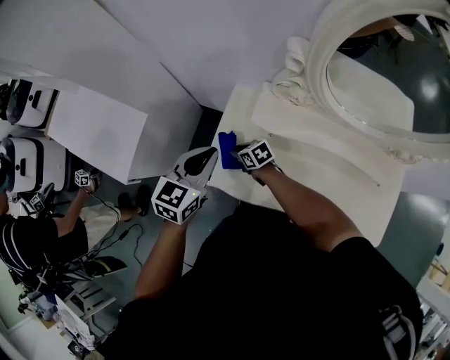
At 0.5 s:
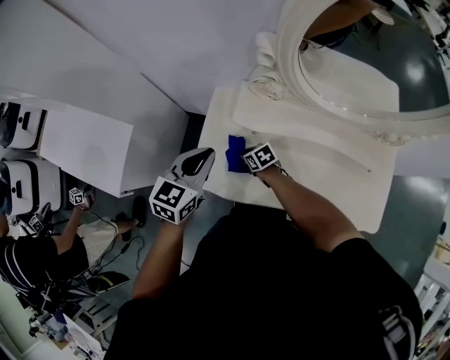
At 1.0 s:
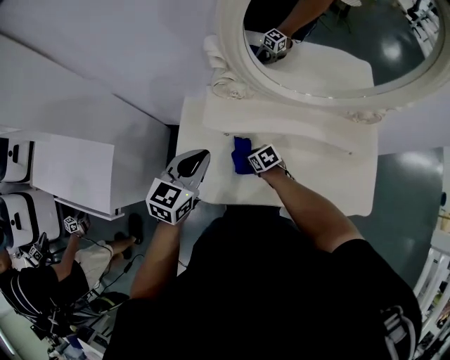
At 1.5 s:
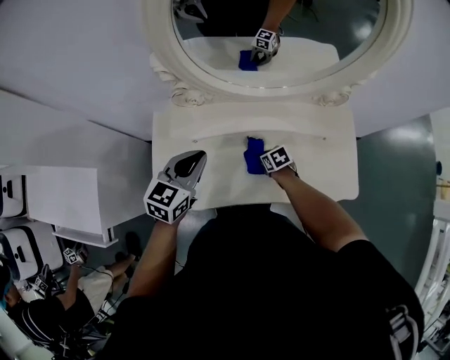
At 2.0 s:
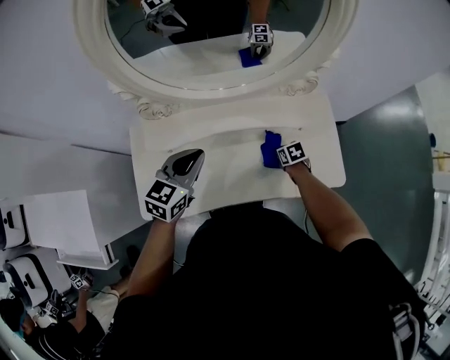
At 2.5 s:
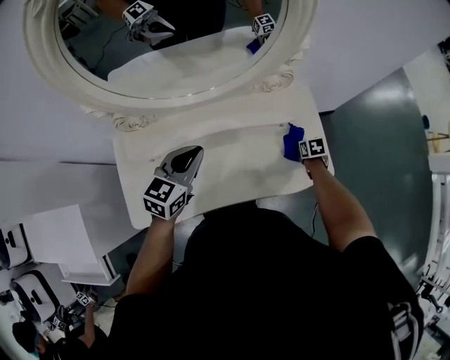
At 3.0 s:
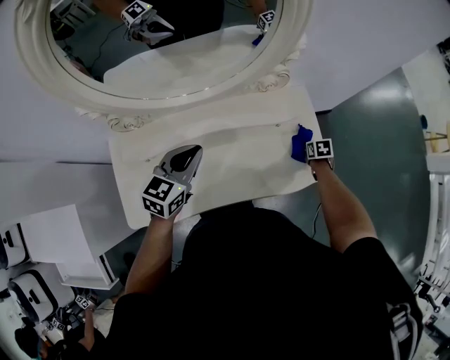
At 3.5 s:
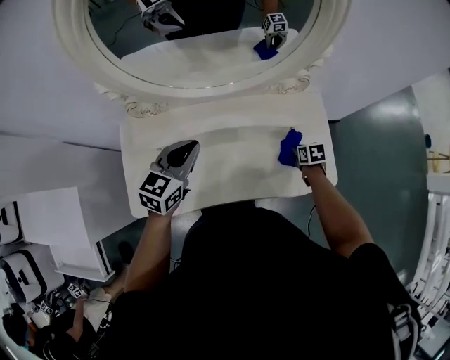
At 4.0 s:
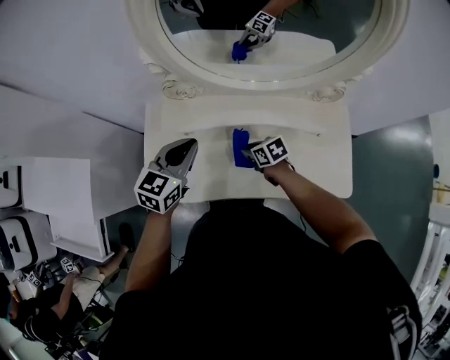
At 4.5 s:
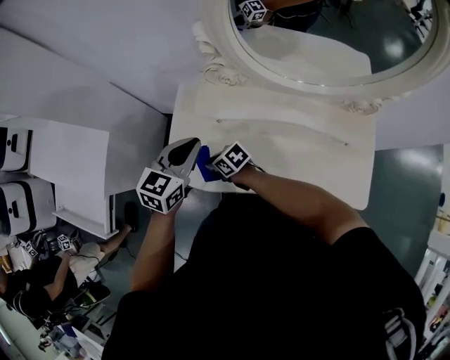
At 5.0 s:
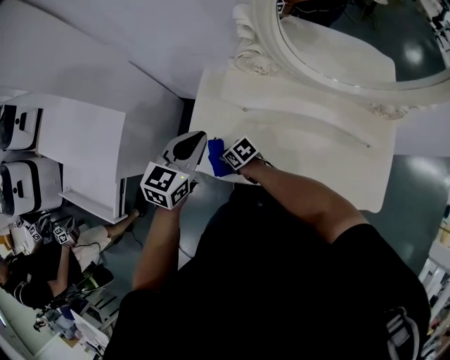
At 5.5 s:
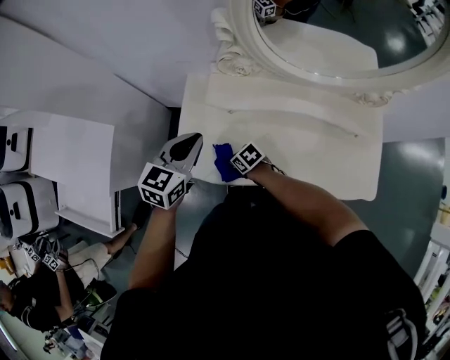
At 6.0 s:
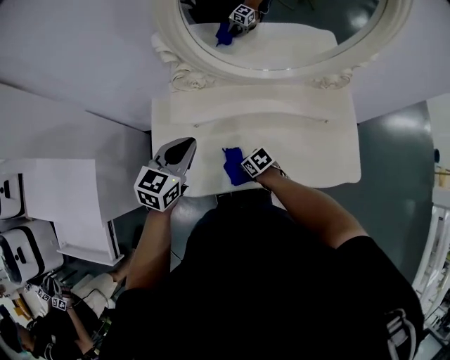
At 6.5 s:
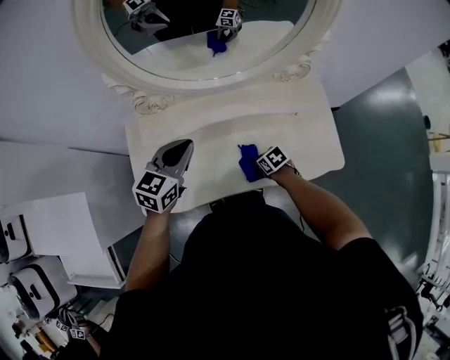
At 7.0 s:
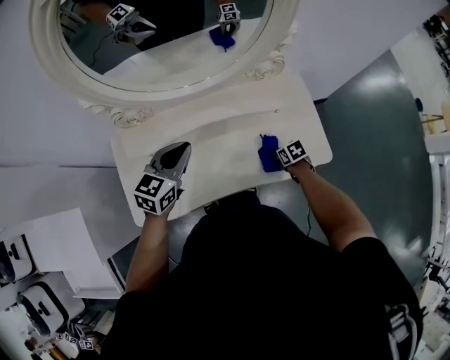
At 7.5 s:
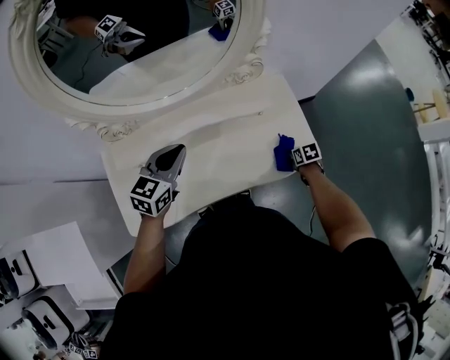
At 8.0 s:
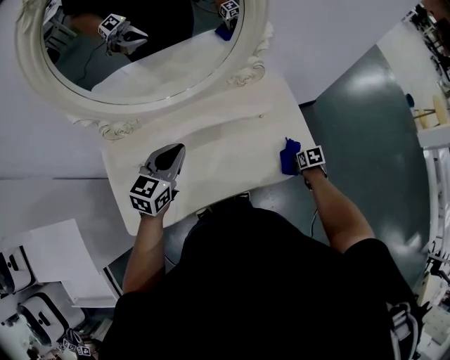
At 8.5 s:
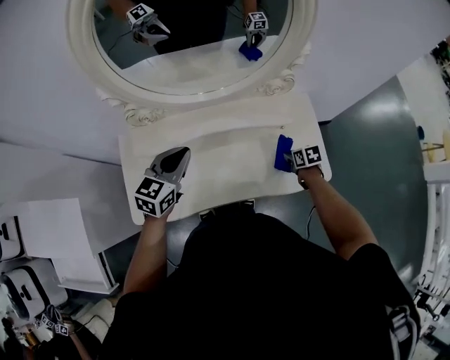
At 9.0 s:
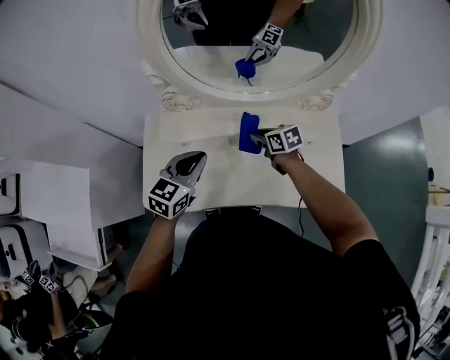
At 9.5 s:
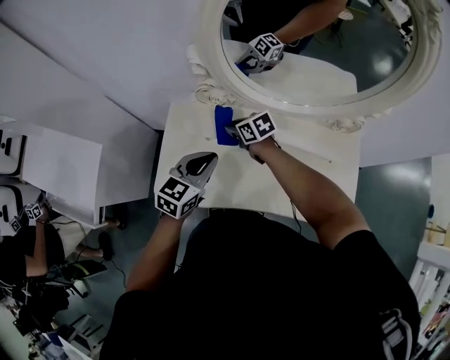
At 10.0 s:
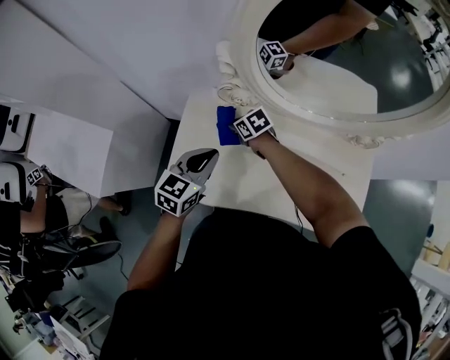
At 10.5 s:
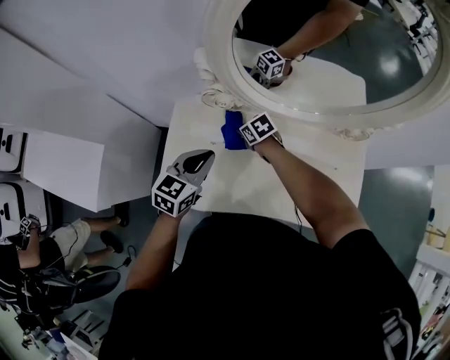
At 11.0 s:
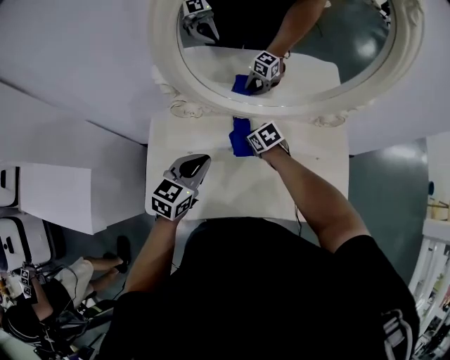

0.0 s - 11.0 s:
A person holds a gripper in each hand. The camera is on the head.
0.0 s - 2.0 s: The right gripper moves roughly 60 cm, and swivels approximately 50 degrees, while the left gripper shifts by about 30 cm, and changes its angle by some 30 degrees.
2.0 s - 3.5 s: The left gripper moves some 10 cm to the right and comes back, while the right gripper shifts roughly 10 cm to the right.
3.5 s - 5.5 s: The right gripper moves roughly 50 cm, and swivels approximately 50 degrees, while the left gripper moves about 25 cm.
5.5 s - 7.5 s: The right gripper ends up approximately 60 cm from where it was, and rotates around the line of its fingers by approximately 50 degrees, clockwise from behind, while the left gripper changes place by about 30 cm, and changes its angle by some 30 degrees.
7.5 s - 9.0 s: The right gripper shifts by about 40 cm, and swivels approximately 40 degrees, while the left gripper moves roughly 15 cm.
9.0 s - 11.0 s: The left gripper moves some 10 cm to the left and comes back. The right gripper heads downward and forward, covering approximately 10 cm, moves roughly 25 cm to the left and comes back, and rotates roughly 20 degrees.

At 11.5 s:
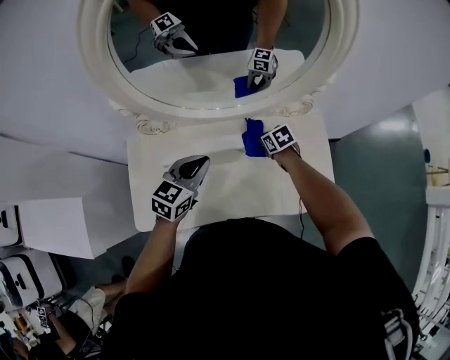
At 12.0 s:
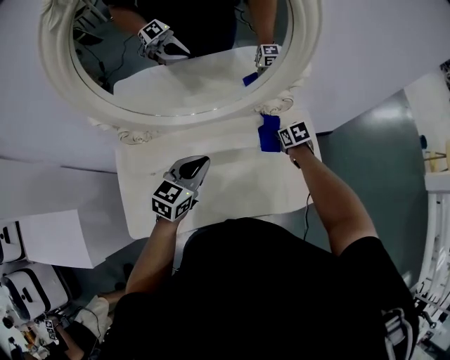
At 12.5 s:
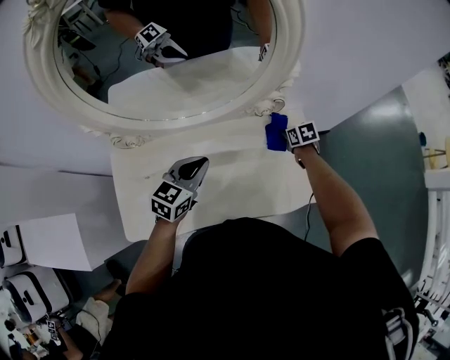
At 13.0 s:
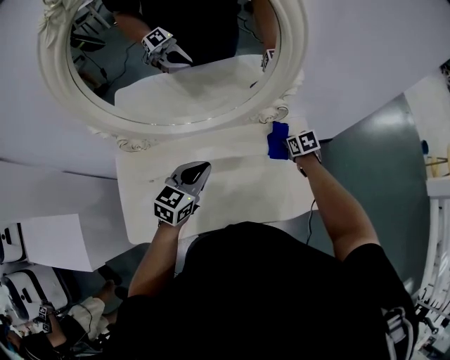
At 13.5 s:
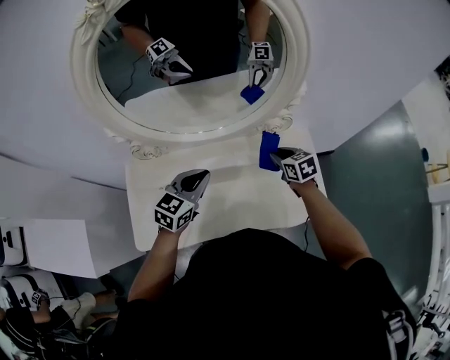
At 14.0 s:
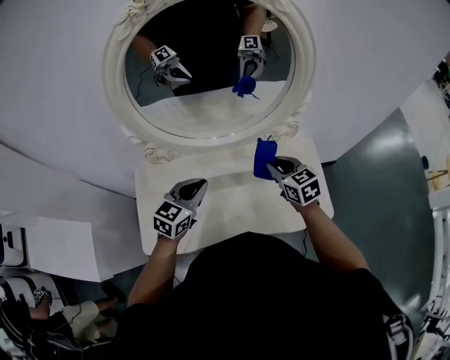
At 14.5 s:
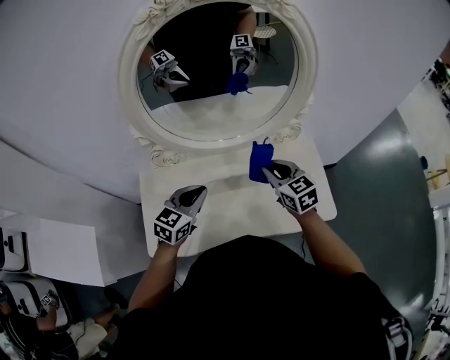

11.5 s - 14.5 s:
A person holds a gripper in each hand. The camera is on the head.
11.5 s - 13.0 s: The left gripper shifts approximately 10 cm to the right. The right gripper goes some 20 cm to the right.
13.0 s - 14.5 s: The right gripper moves upward, to the left and backward, some 35 cm, and tilts its fingers about 30 degrees upward. Meanwhile the left gripper goes approximately 15 cm to the left and backward.

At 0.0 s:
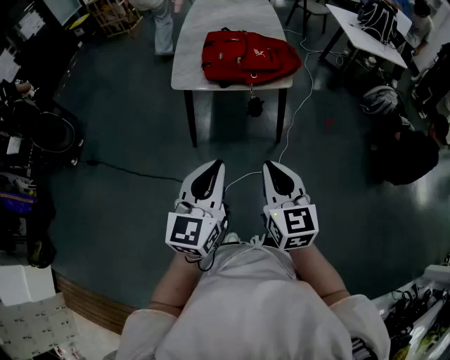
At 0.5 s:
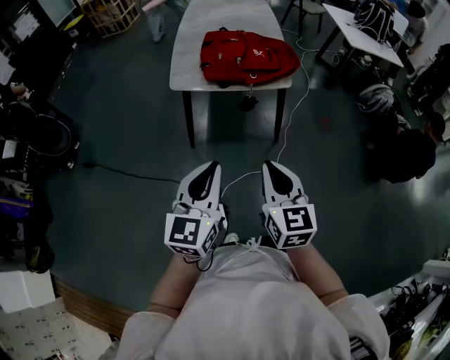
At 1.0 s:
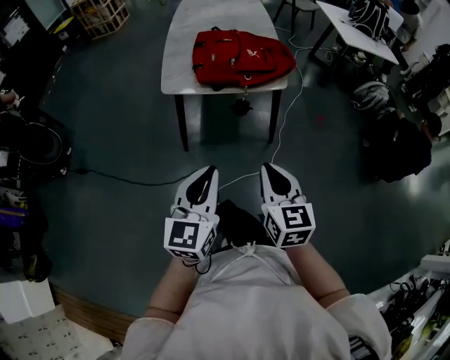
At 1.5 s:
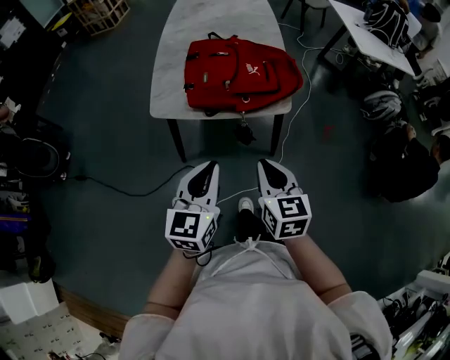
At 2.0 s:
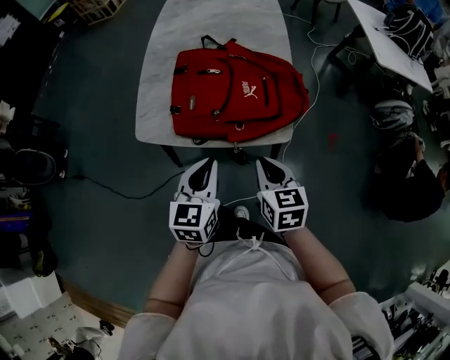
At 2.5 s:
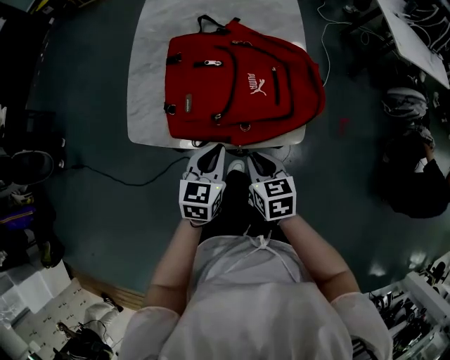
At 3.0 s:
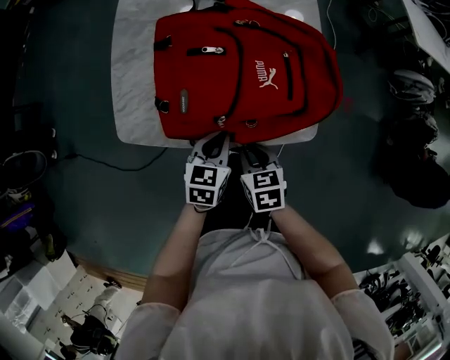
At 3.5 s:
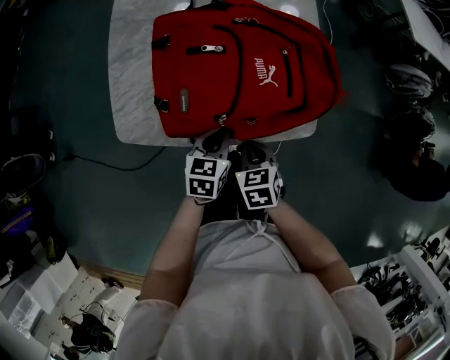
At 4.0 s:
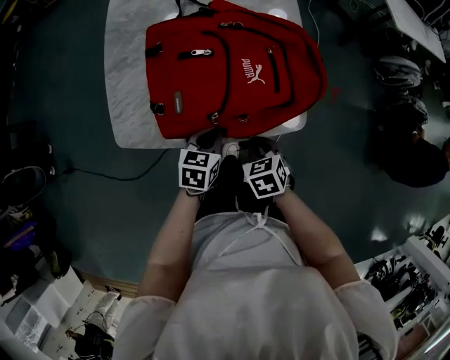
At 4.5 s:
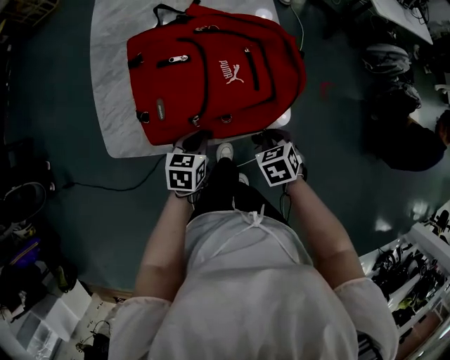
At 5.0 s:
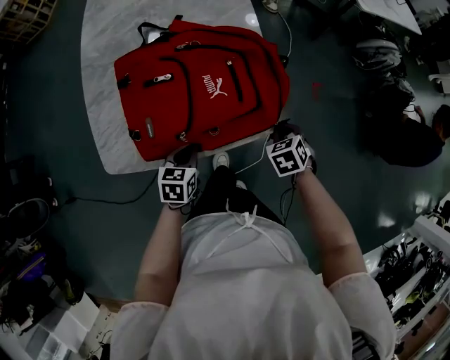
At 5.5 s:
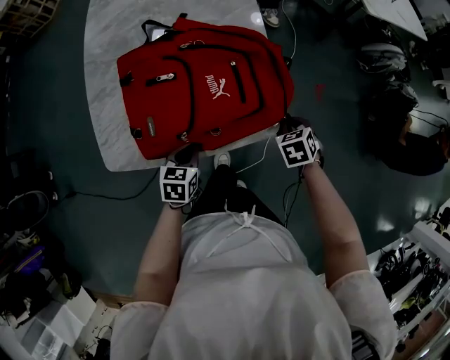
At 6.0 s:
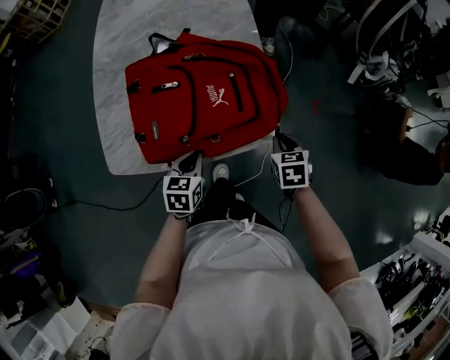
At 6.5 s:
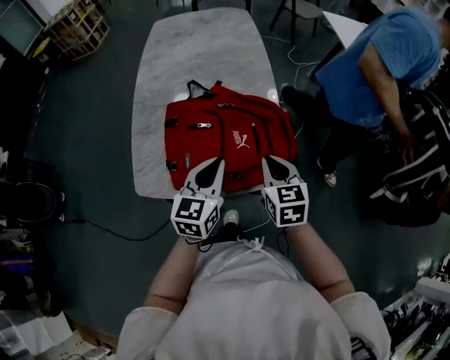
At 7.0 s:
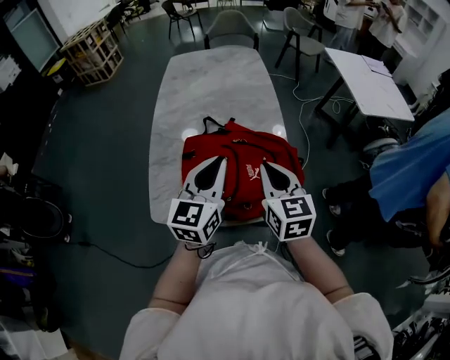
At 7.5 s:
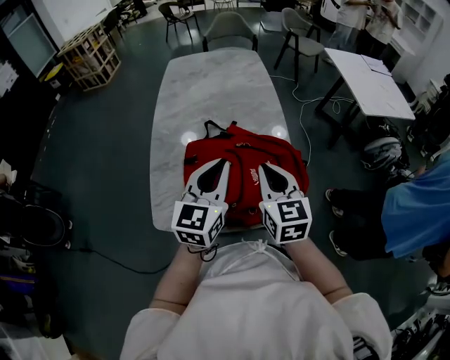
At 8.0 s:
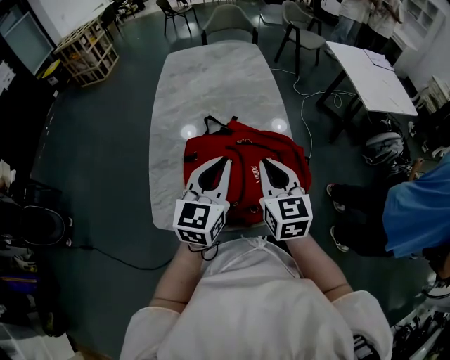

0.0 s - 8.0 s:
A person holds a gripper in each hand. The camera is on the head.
0.0 s - 2.0 s: Both grippers move forward, some 40 cm. The right gripper rotates about 20 degrees.
2.0 s - 4.0 s: The right gripper goes some 15 cm downward, and swivels roughly 30 degrees; the left gripper heads downward and forward, covering about 25 cm, and changes its angle by about 30 degrees.
4.0 s - 6.0 s: The right gripper shifts approximately 20 cm to the right and forward, and rotates approximately 20 degrees.
6.0 s - 8.0 s: The right gripper moves upward and to the left, roughly 35 cm, and tilts its fingers approximately 40 degrees upward, while the left gripper shifts roughly 30 cm upward, and tilts its fingers roughly 40 degrees upward.

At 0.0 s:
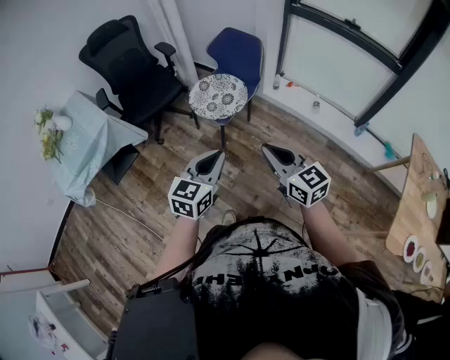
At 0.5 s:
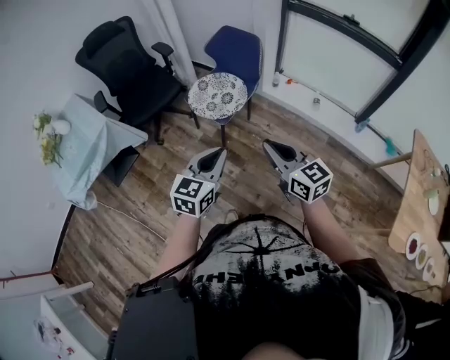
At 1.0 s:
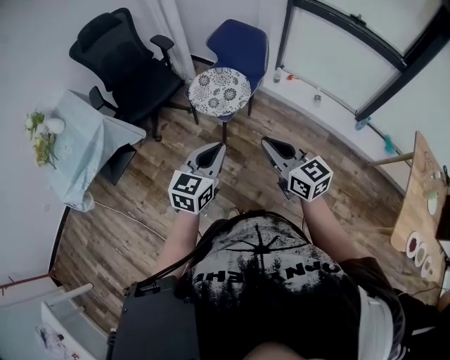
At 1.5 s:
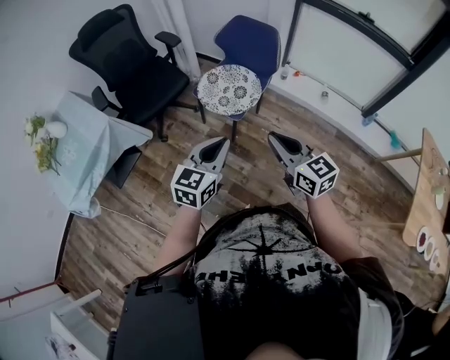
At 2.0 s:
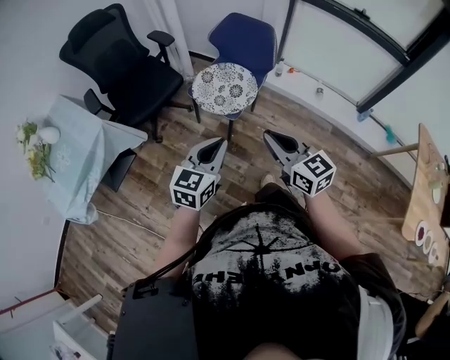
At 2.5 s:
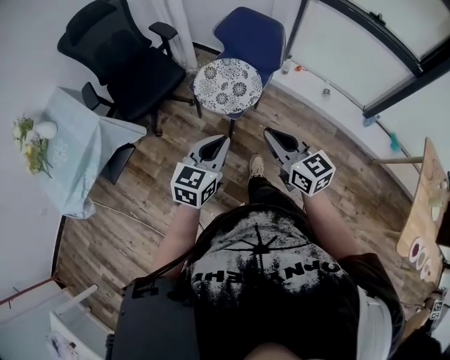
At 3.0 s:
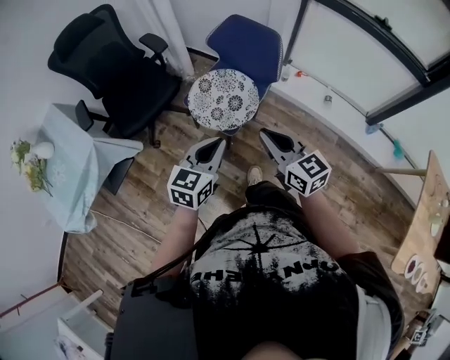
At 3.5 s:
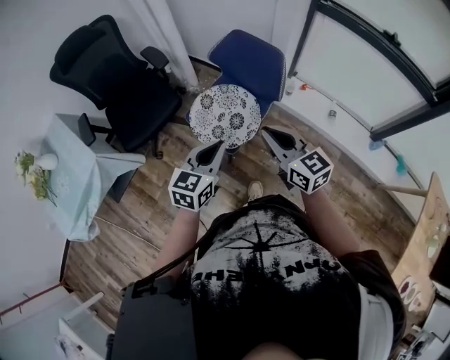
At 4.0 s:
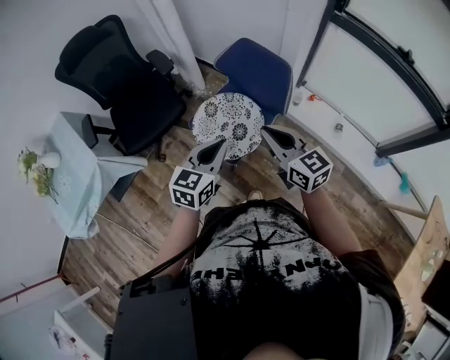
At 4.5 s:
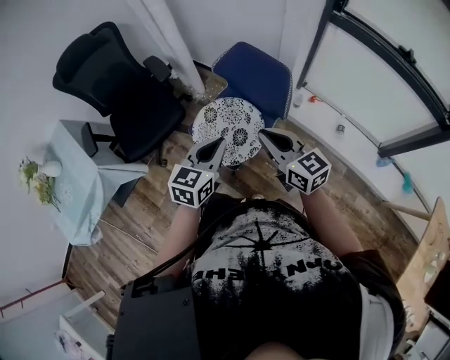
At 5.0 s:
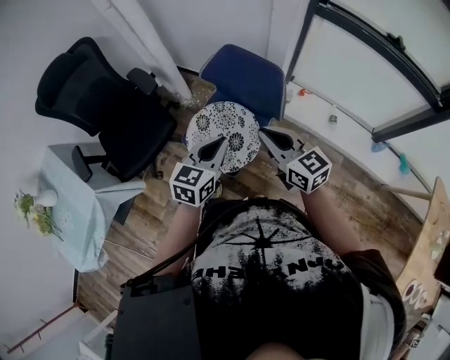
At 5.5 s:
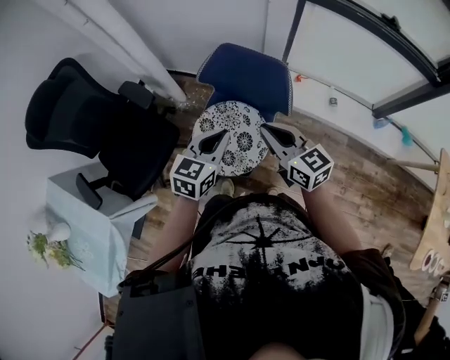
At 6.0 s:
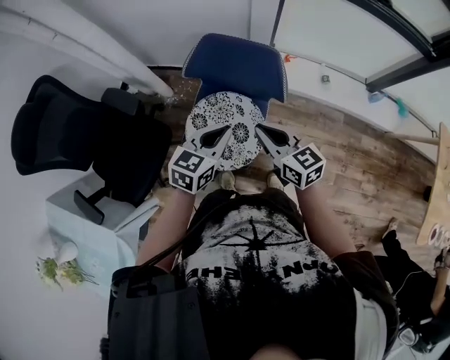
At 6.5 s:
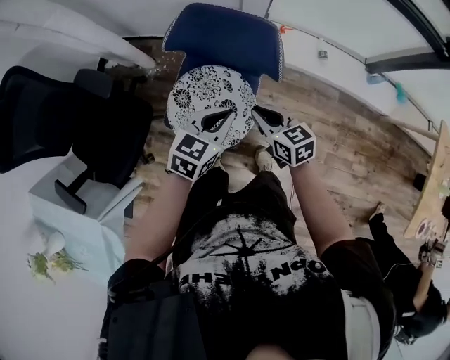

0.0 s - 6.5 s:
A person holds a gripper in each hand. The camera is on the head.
0.0 s - 2.0 s: Both grippers move to the left and forward, about 15 cm.
2.0 s - 4.5 s: Both grippers travel together forward, approximately 35 cm.
4.5 s - 6.5 s: The right gripper shifts approximately 20 cm downward, and turns by some 40 degrees. The left gripper shifts by approximately 20 cm, and changes its angle by roughly 40 degrees.
